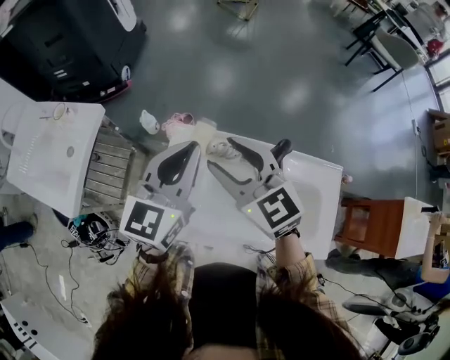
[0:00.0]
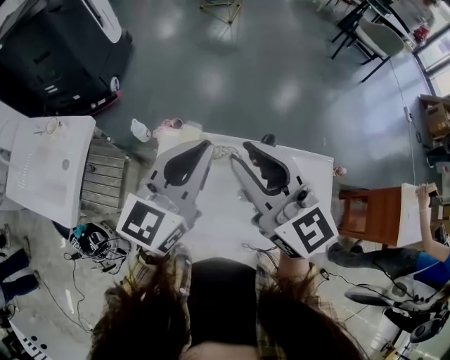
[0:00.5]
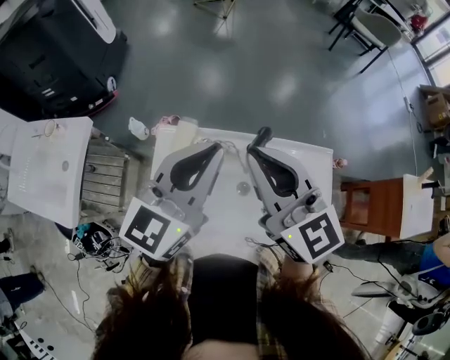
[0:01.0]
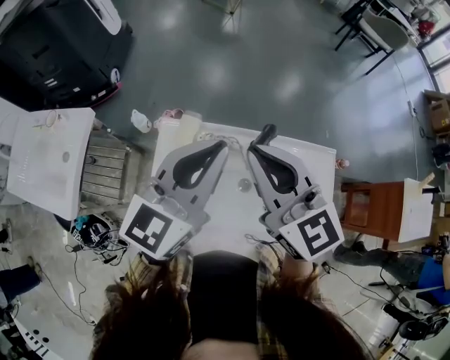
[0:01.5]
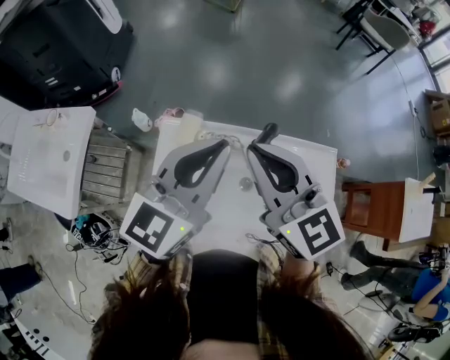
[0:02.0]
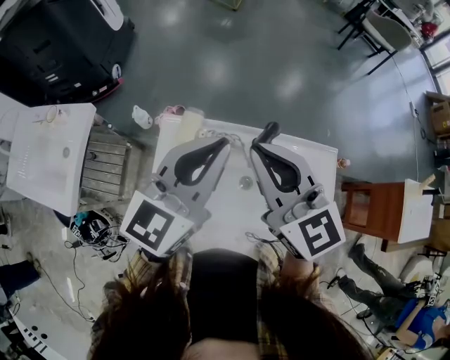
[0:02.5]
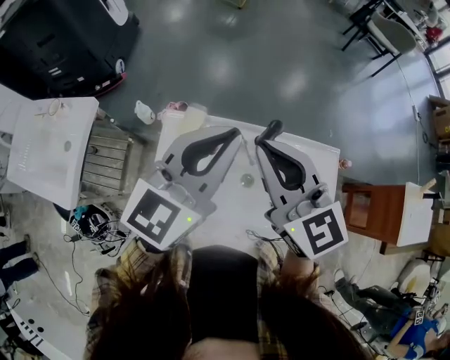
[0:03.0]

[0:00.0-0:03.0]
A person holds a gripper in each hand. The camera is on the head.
0:00.0 to 0:01.5: The right gripper travels upward and to the right by about 10 cm, and closes; the left gripper is displaced to the right and upward by approximately 10 cm.
0:01.5 to 0:03.0: There are only small adjustments of the grippers.

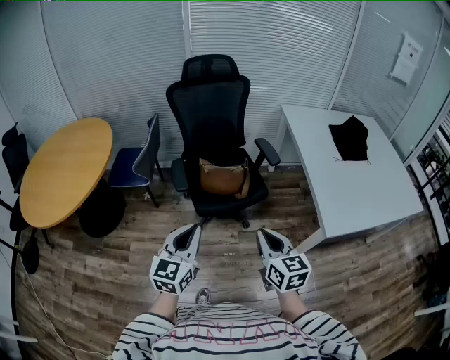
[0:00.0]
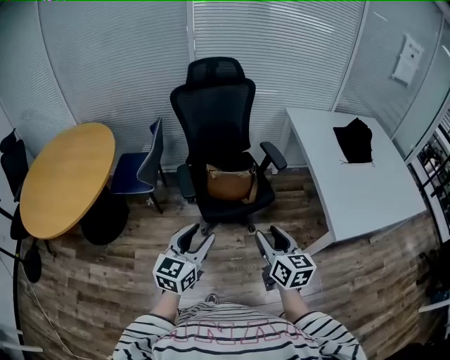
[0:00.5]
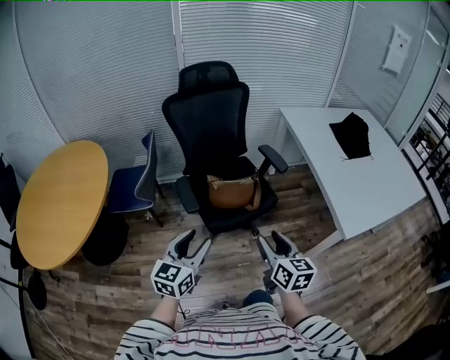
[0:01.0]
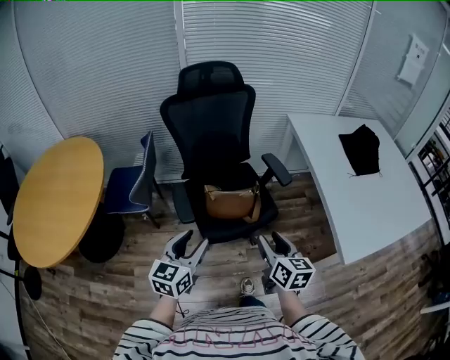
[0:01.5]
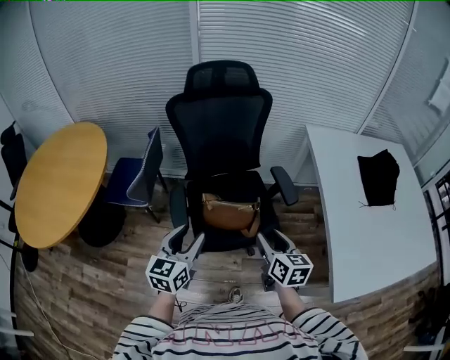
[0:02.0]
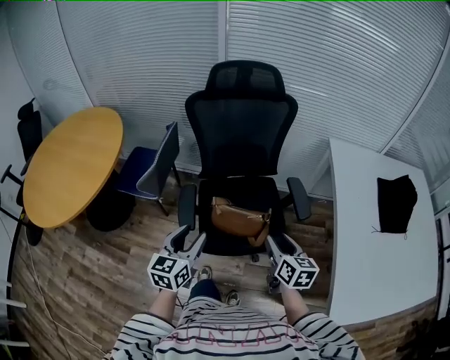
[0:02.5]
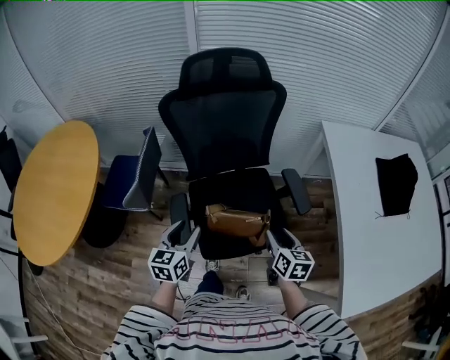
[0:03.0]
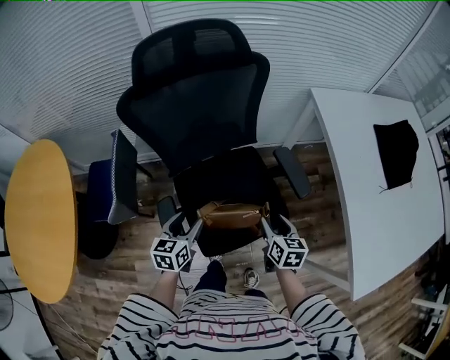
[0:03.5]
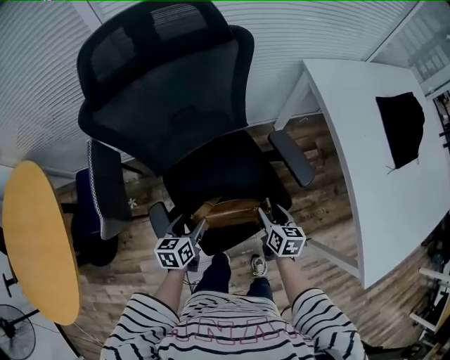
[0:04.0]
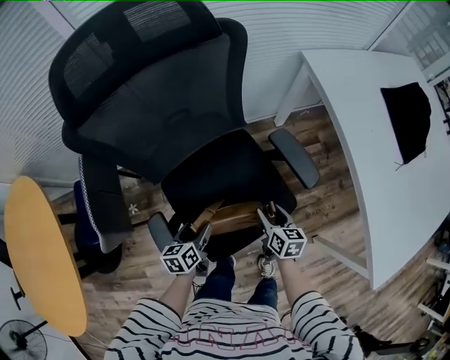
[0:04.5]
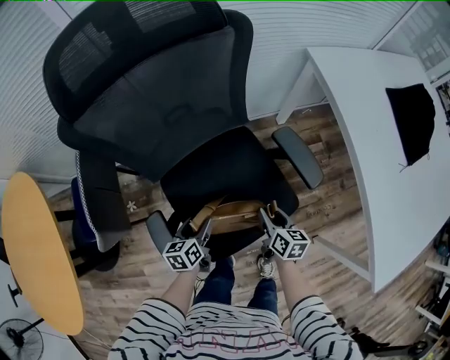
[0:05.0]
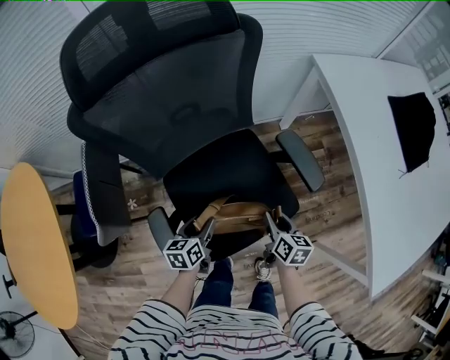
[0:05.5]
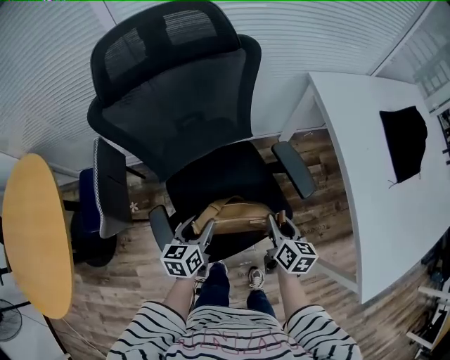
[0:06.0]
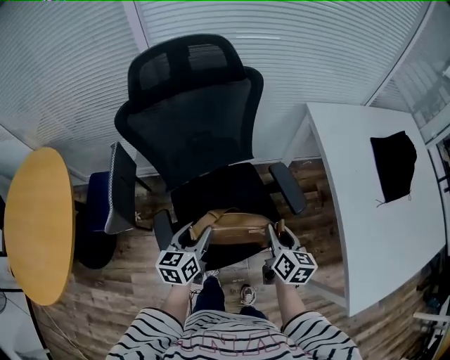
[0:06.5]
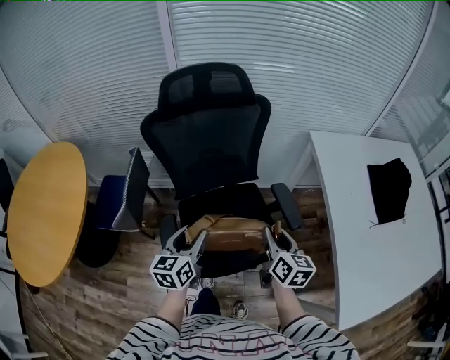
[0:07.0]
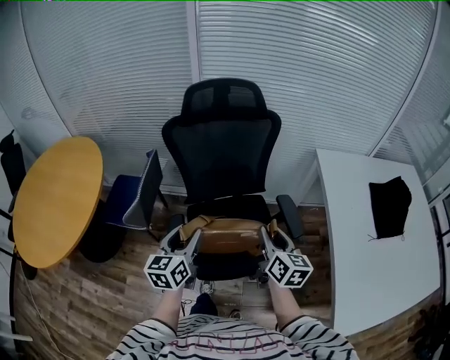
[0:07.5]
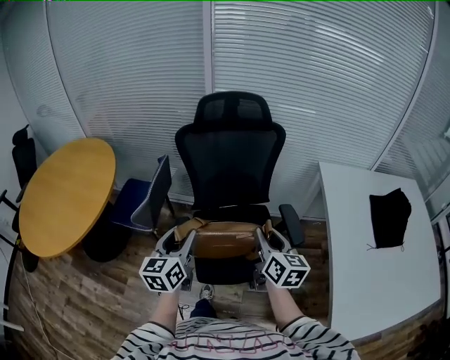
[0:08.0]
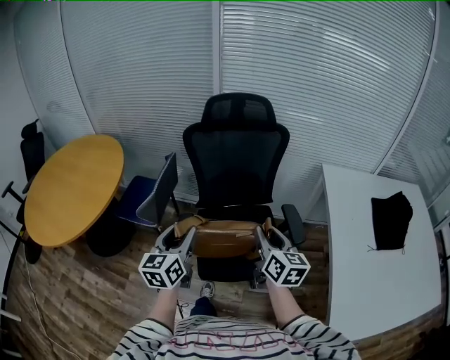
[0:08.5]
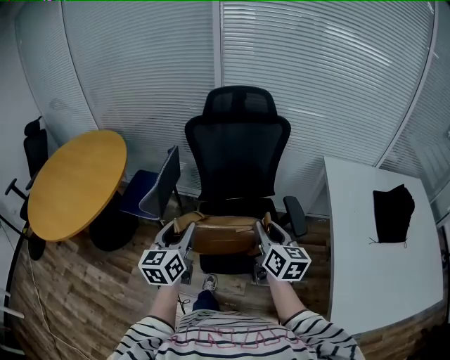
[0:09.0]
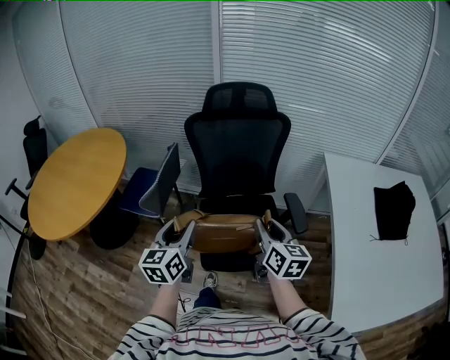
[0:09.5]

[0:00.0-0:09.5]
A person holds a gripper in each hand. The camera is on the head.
0:00.0 to 0:02.0: Both grippers travel together forward, some 30 cm. The right gripper opens. Meanwhile the left gripper opens its fingers.
0:02.0 to 0:04.0: Both grippers move downward and forward, approximately 35 cm. The left gripper swivels some 30 degrees. Meanwhile the right gripper swivels roughly 30 degrees.
0:04.0 to 0:05.5: The left gripper shifts approximately 5 cm downward. Meanwhile the right gripper closes up.
0:05.5 to 0:07.5: Both grippers move upward, roughly 30 cm. The left gripper changes its angle by roughly 40 degrees. The right gripper changes its angle by about 30 degrees.
0:07.5 to 0:09.5: The left gripper is displaced backward by roughly 10 cm, while the right gripper heads backward, covering approximately 5 cm.

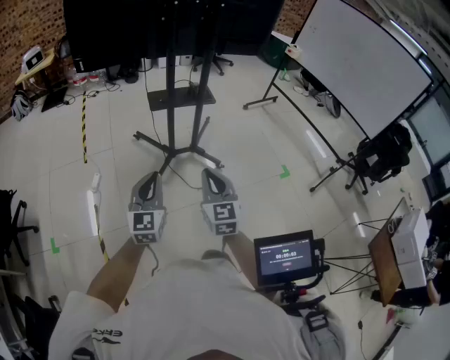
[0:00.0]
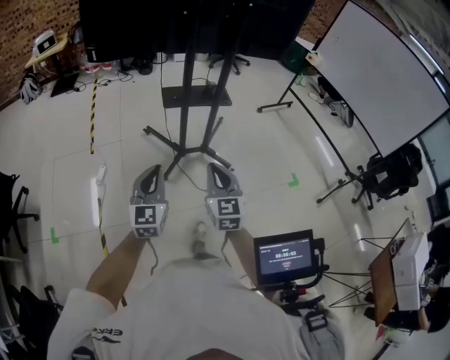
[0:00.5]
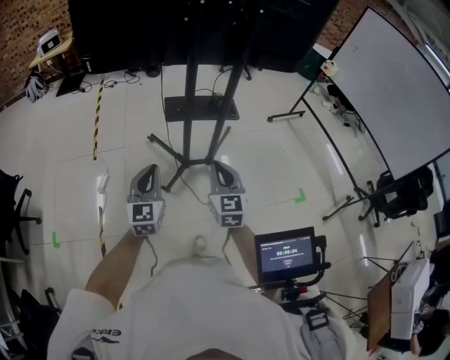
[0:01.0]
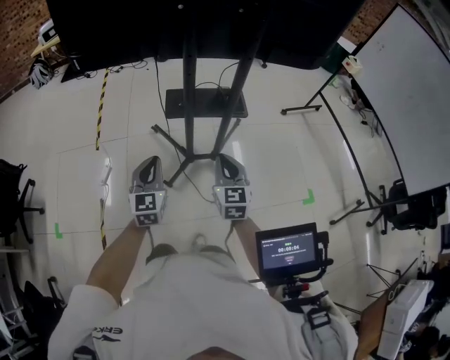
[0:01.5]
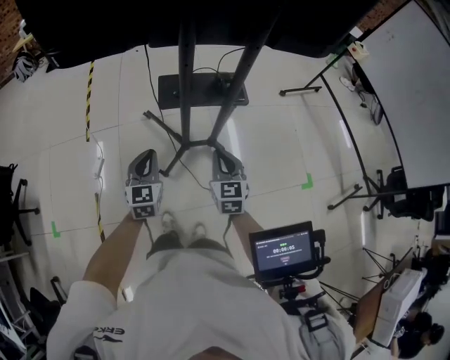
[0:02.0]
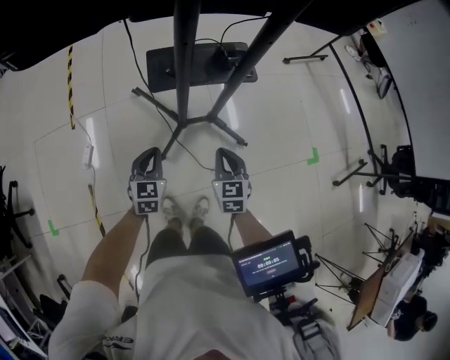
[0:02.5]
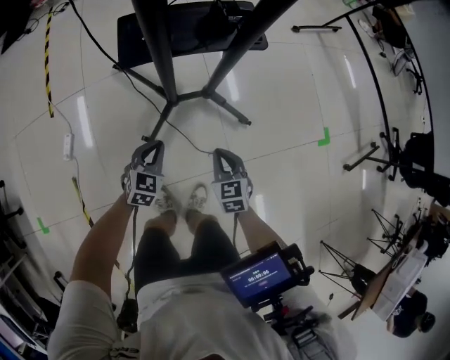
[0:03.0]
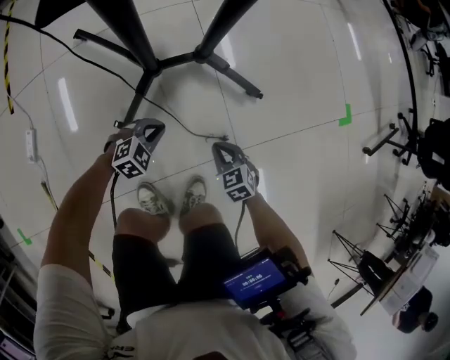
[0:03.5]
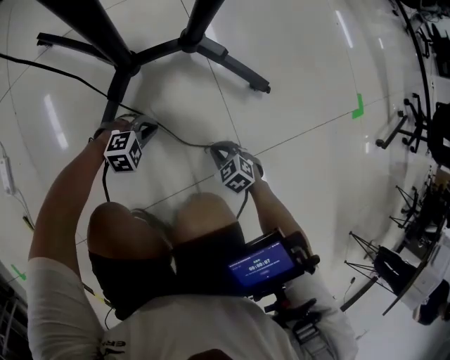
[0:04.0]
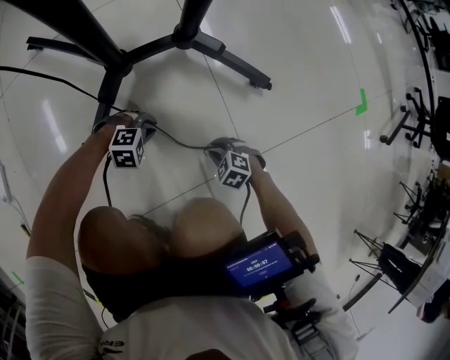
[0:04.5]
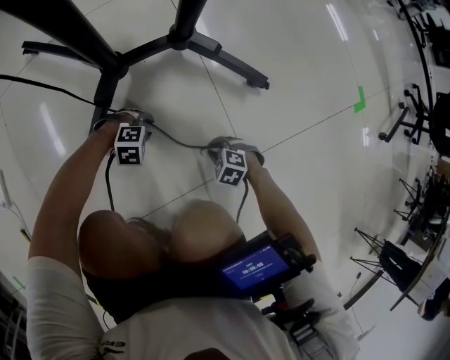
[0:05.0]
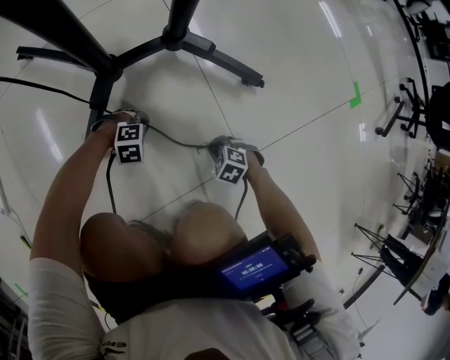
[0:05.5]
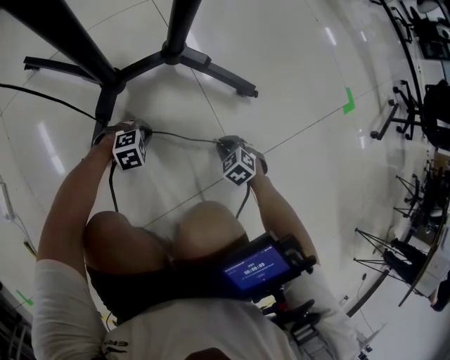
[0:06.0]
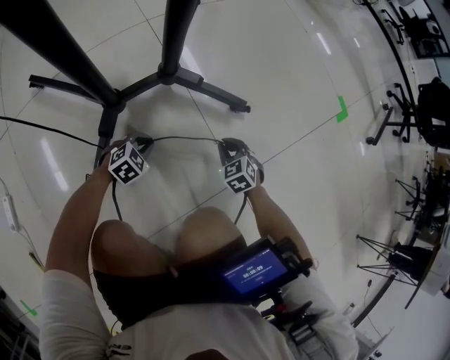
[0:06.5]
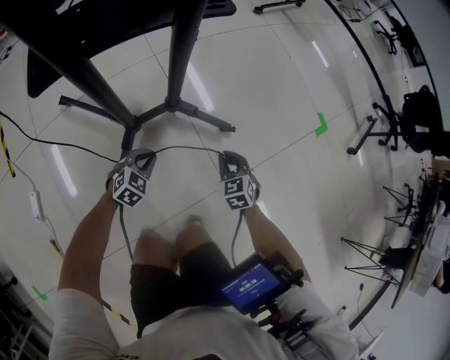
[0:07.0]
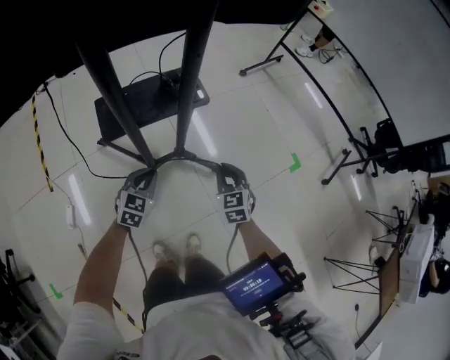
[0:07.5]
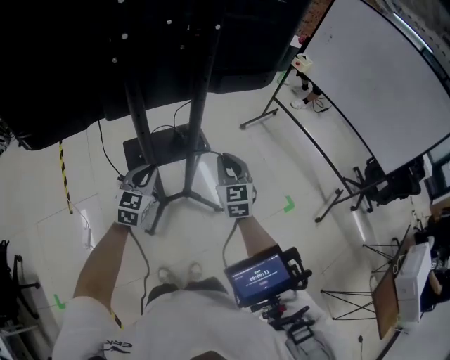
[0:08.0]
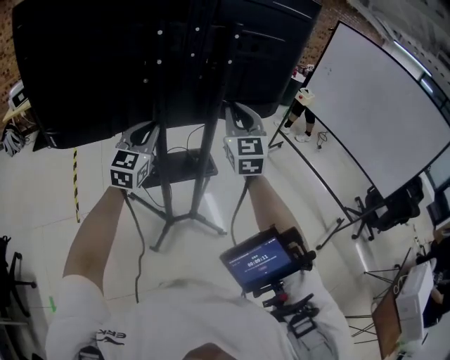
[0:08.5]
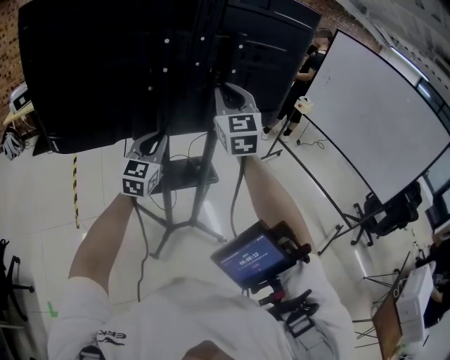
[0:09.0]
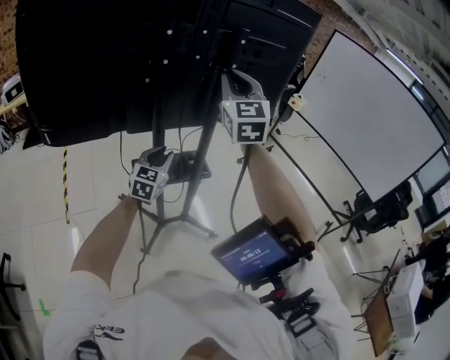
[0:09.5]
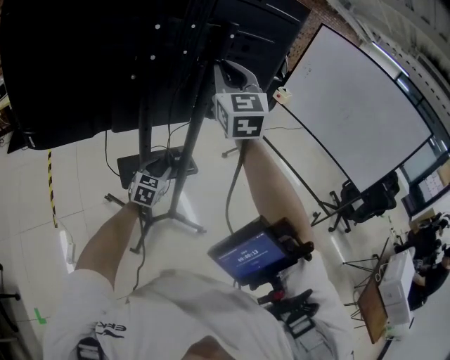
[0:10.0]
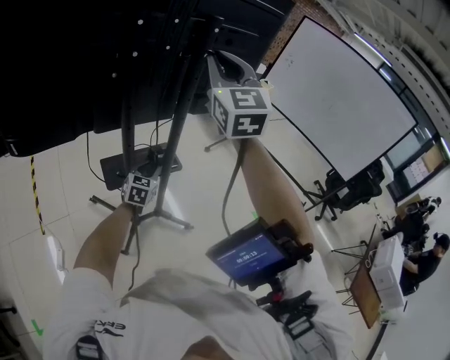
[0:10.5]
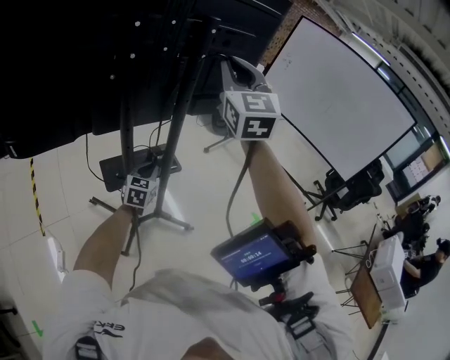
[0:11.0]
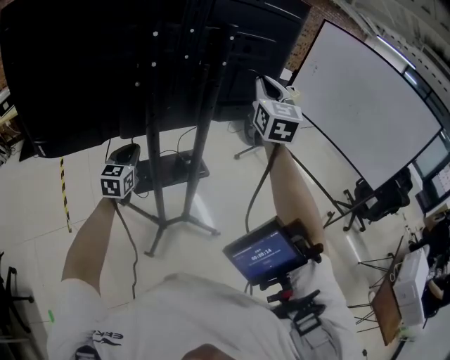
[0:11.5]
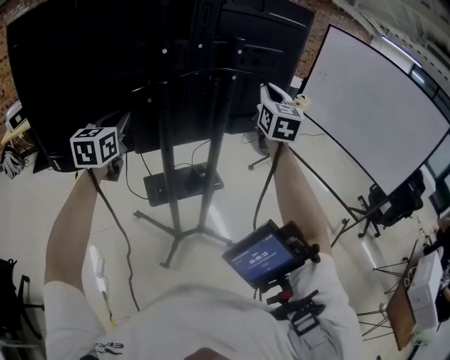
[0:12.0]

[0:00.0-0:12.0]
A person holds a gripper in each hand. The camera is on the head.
0:00.0 to 0:02.0: Both grippers travel together forward, roughly 40 cm. The left gripper swivels roughly 20 degrees.
0:02.0 to 0:04.0: Both grippers travel together downward, approximately 80 cm. The left gripper tips its fingers downward by roughly 40 degrees, while the right gripper angles its fingers downward, by approximately 40 degrees.
0:04.0 to 0:06.0: The right gripper changes place by some 10 cm, while the left gripper moves downward, some 5 cm, and opens, then closes again.
0:06.0 to 0:08.0: The grippers both shift upward by roughly 1 m. The left gripper tilts its fingers roughly 50 degrees upward, while the right gripper tips its fingers upward by roughly 60 degrees.
0:08.0 to 0:10.0: The left gripper goes upward and returns, approximately 25 cm each way, and opens up, while the right gripper heads upward, covering roughly 35 cm, and changes its angle by roughly 30 degrees.
0:10.0 to 0:12.0: The left gripper shifts about 35 cm upward and to the left, and closes. Meanwhile the right gripper goes approximately 15 cm to the right and forward.

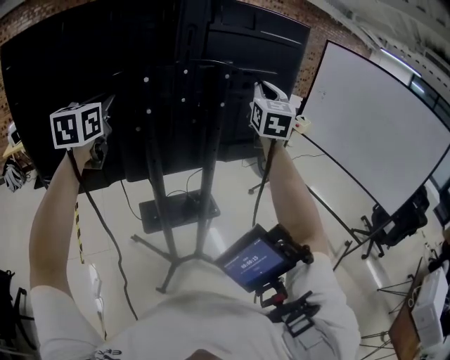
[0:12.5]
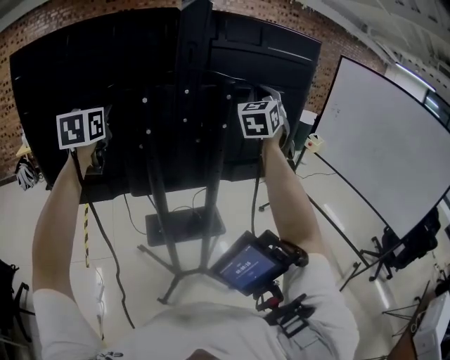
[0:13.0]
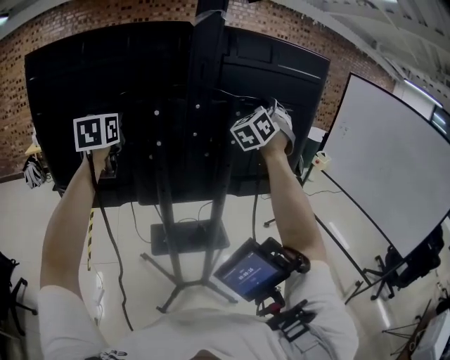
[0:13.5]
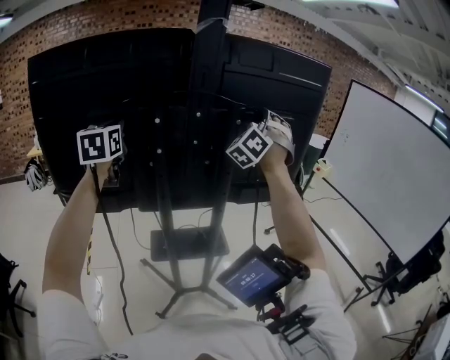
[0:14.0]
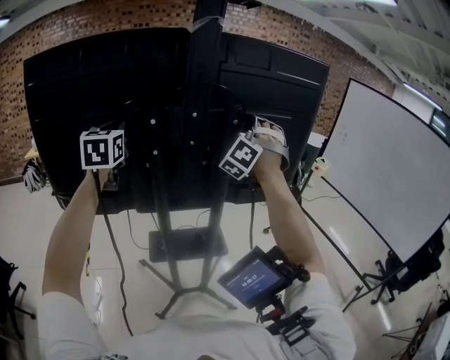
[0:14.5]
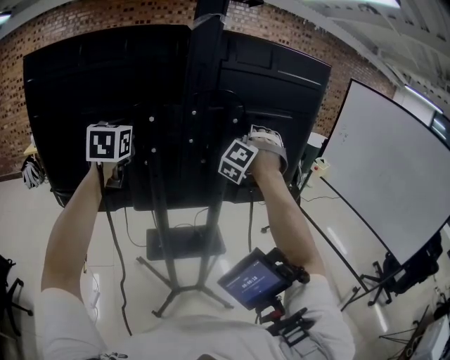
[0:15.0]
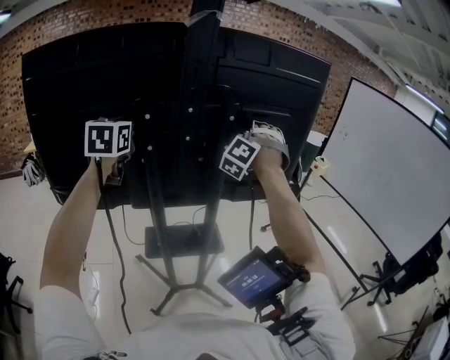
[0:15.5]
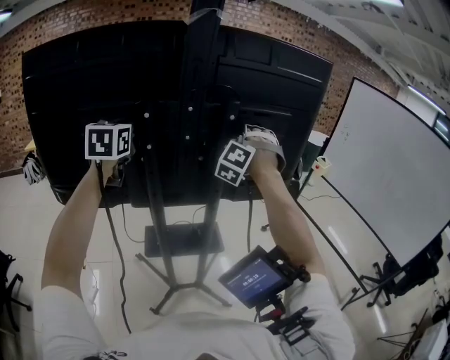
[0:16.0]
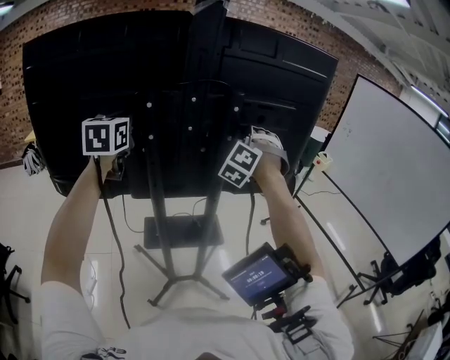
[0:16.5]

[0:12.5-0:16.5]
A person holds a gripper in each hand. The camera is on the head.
0:12.5 to 0:14.5: The right gripper shifts about 10 cm forward and to the left, and rolls counterclockwise, seen from behind, by roughly 70 degrees.
0:14.5 to 0:16.5: The right gripper is displaced downward by about 10 cm.
